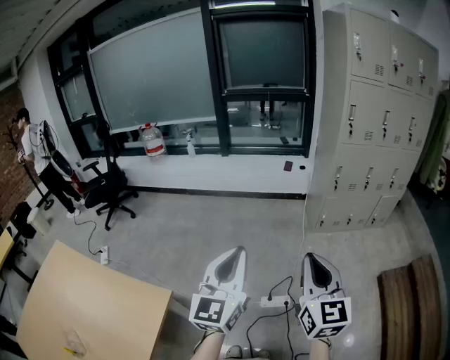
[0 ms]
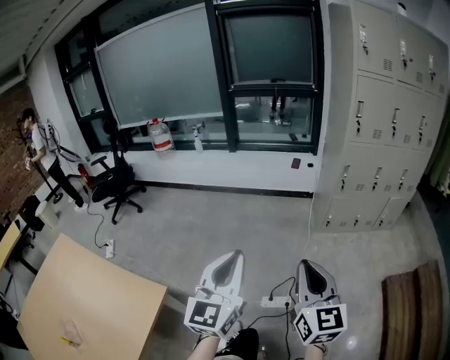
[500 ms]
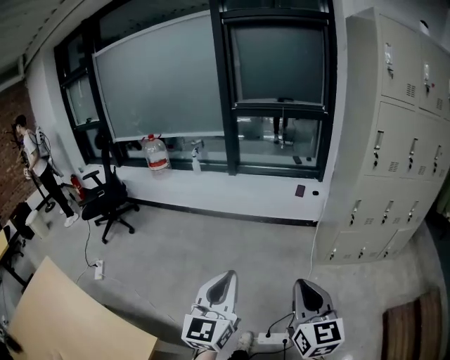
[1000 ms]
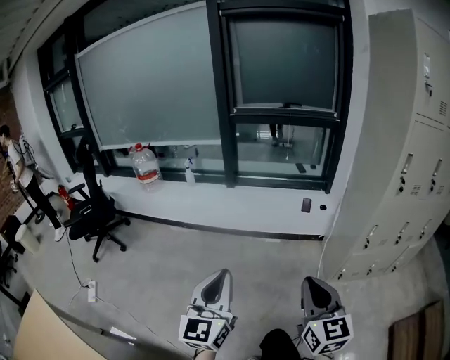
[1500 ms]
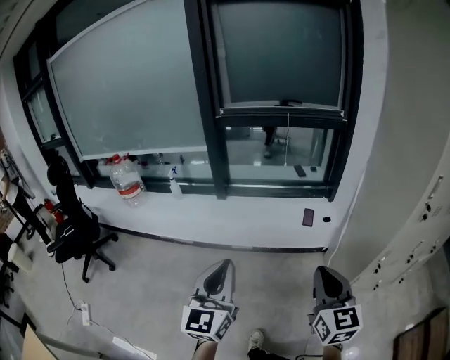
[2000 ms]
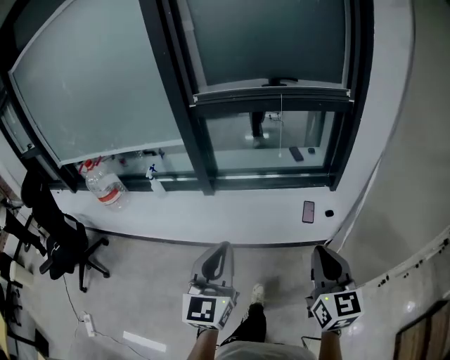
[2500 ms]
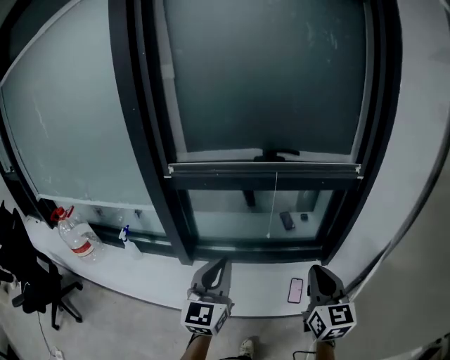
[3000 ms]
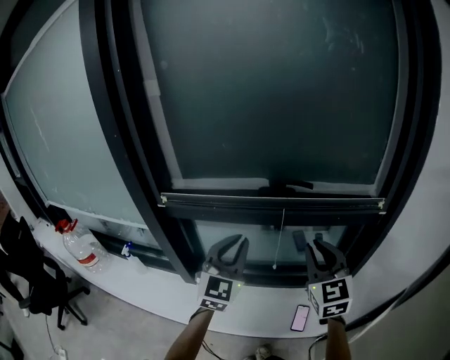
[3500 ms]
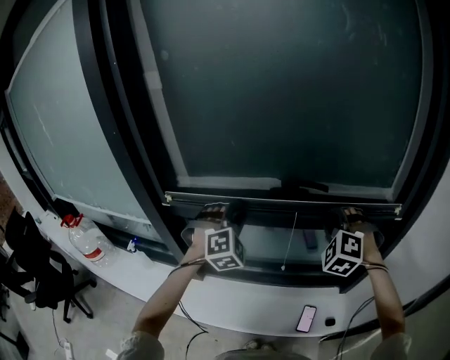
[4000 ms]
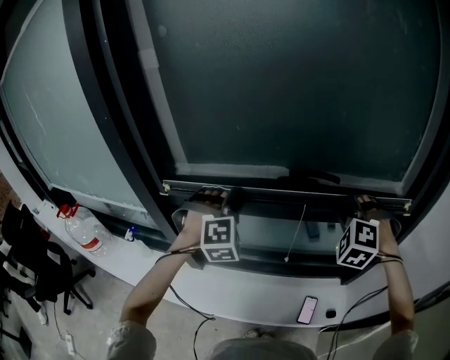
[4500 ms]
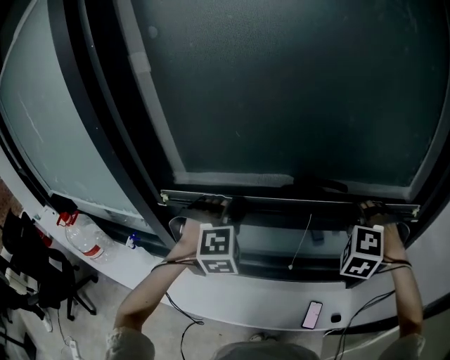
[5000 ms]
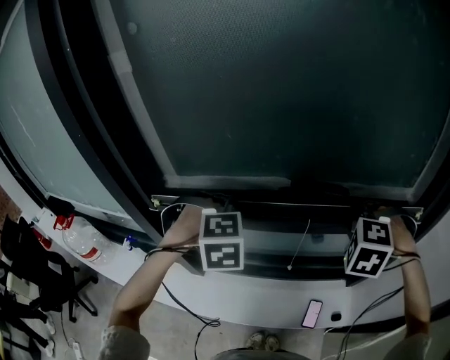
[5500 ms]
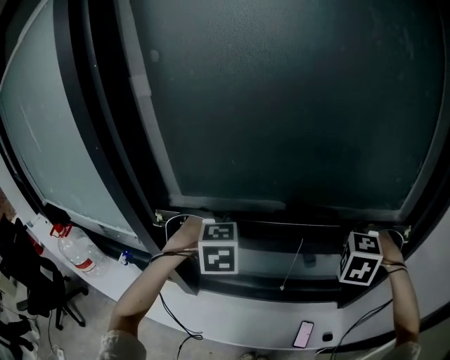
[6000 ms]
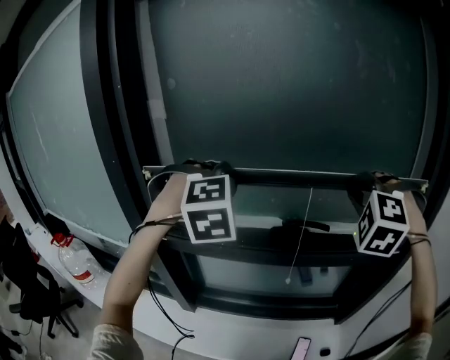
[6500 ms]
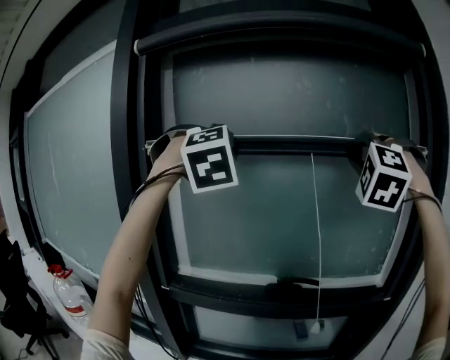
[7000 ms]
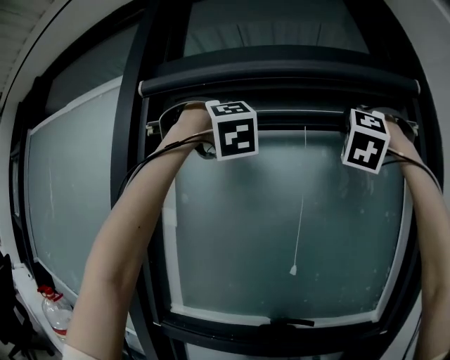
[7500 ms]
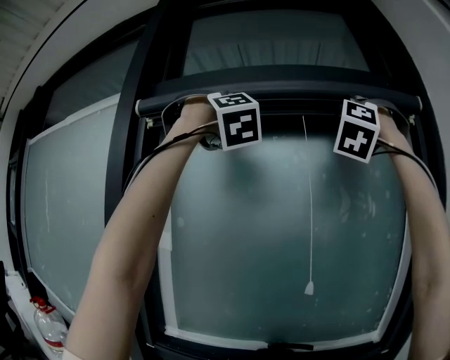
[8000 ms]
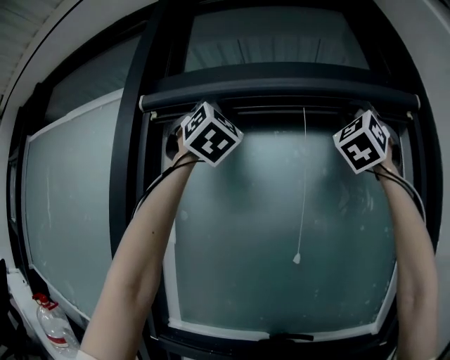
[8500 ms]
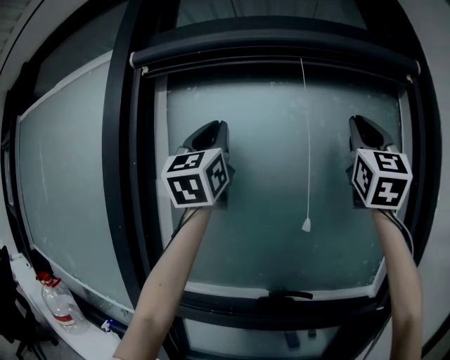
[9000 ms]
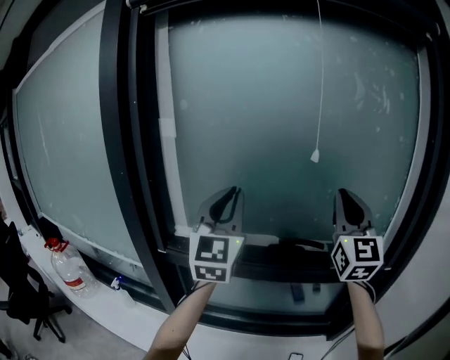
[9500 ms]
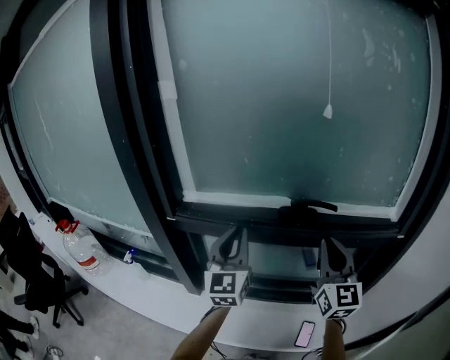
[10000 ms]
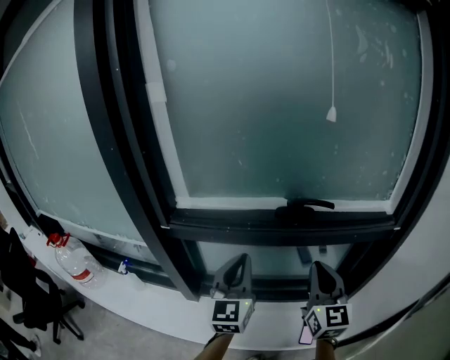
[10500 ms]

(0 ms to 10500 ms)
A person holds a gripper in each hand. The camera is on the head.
0 ms - 2000 ms: The two grippers travel together, forward, approximately 70 cm.
2000 ms - 4000 ms: The two grippers travel together, forward, approximately 90 cm. The right gripper rotates around the line of its fingers by about 70 degrees, counterclockwise from behind. The left gripper twists approximately 70 degrees clockwise, seen from behind.
4000 ms - 6500 ms: Both grippers move upward, some 20 cm.
6500 ms - 8500 ms: The two grippers go some 50 cm upward. The right gripper tips its fingers upward by some 60 degrees, while the left gripper tilts its fingers about 60 degrees upward.
8500 ms - 10500 ms: Both grippers move downward, about 70 cm. The left gripper twists approximately 60 degrees counterclockwise, seen from behind; the right gripper rotates around the line of its fingers by some 60 degrees, clockwise from behind.

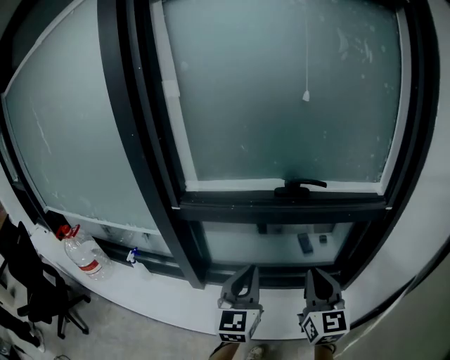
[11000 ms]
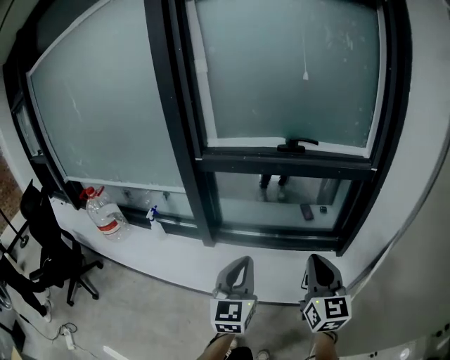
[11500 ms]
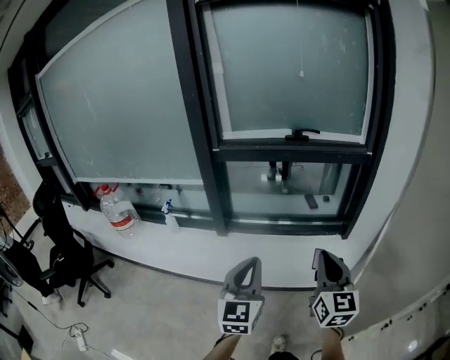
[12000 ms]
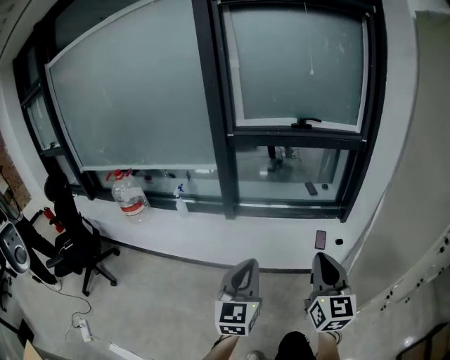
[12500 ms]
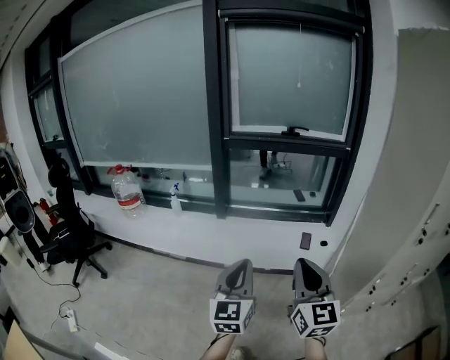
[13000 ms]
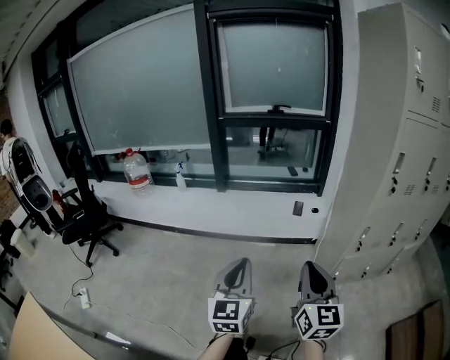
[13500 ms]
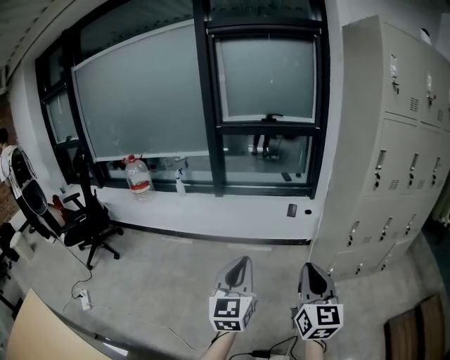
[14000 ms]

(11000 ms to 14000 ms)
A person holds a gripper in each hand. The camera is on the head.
11000 ms - 12500 ms: Both grippers are carried backward, roughly 50 cm.
12500 ms - 14000 ms: The pair of grippers is taken backward, about 40 cm.

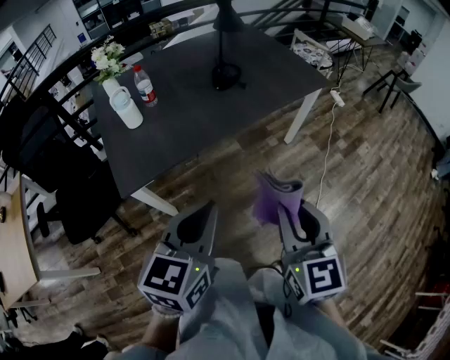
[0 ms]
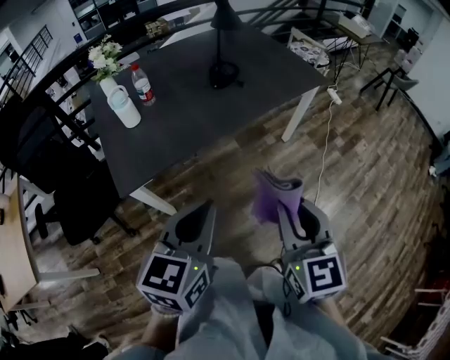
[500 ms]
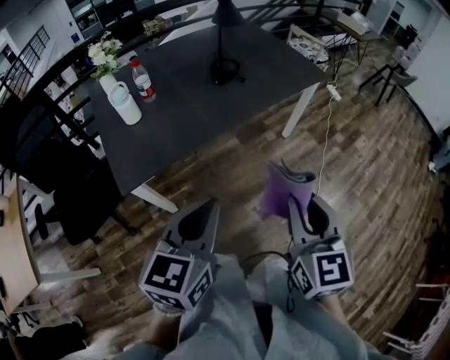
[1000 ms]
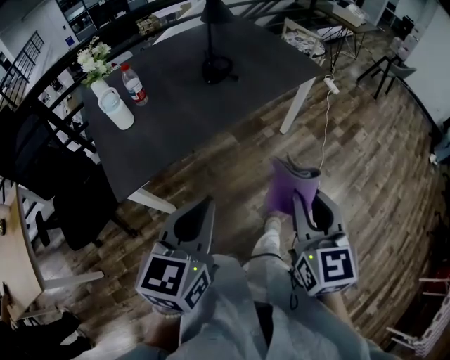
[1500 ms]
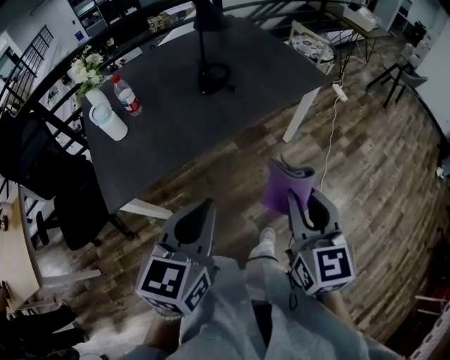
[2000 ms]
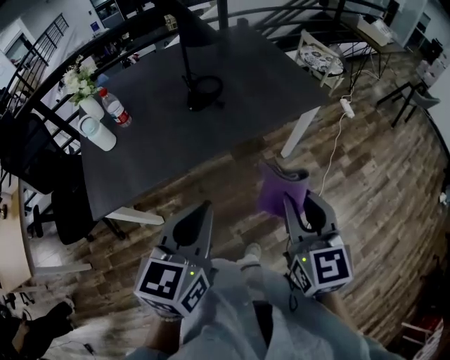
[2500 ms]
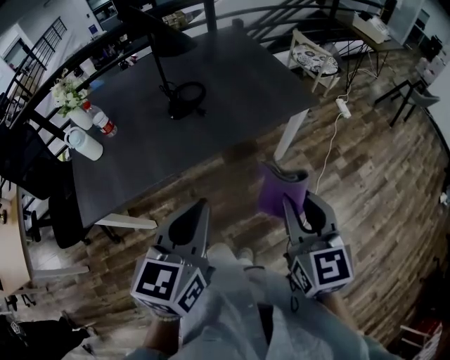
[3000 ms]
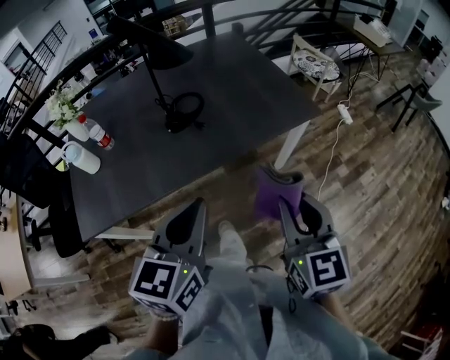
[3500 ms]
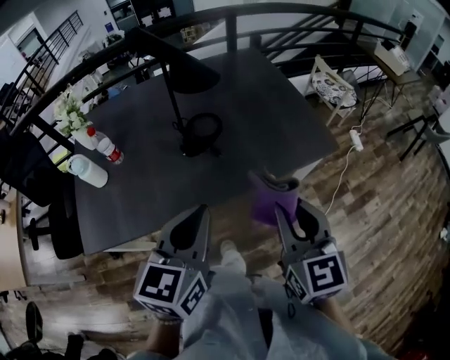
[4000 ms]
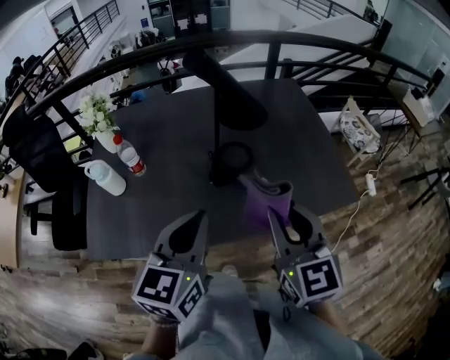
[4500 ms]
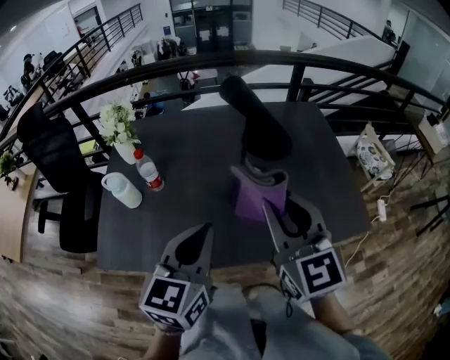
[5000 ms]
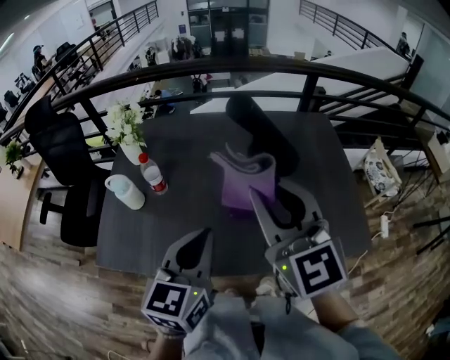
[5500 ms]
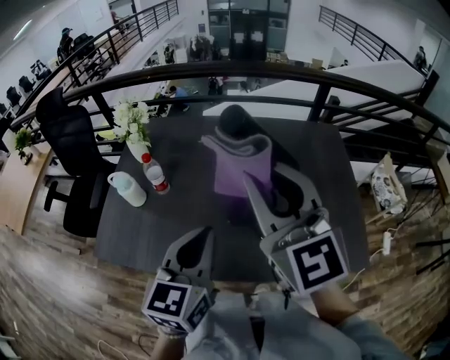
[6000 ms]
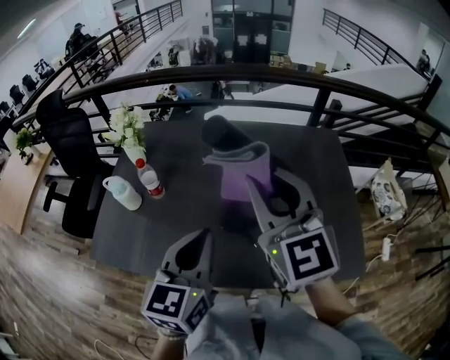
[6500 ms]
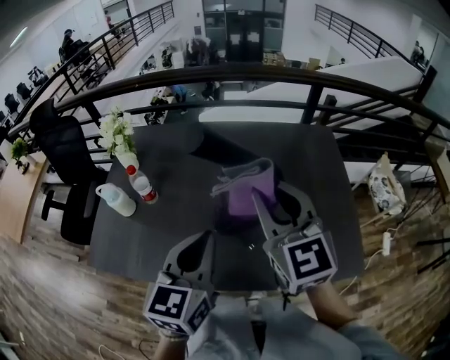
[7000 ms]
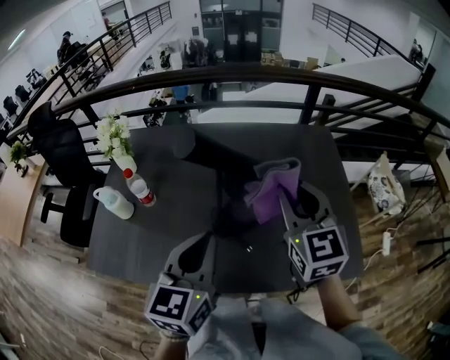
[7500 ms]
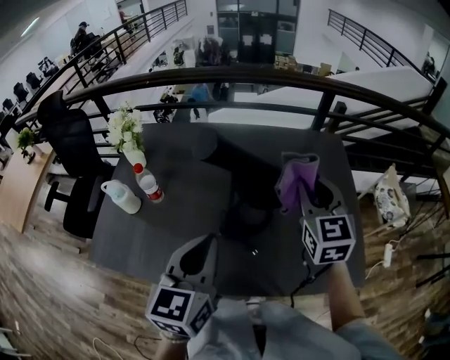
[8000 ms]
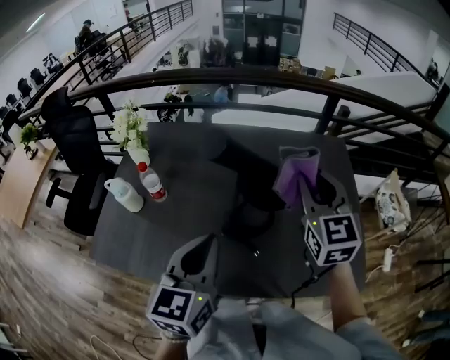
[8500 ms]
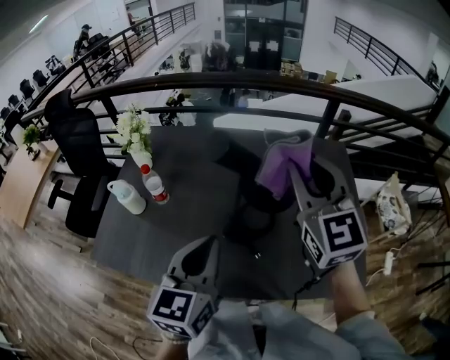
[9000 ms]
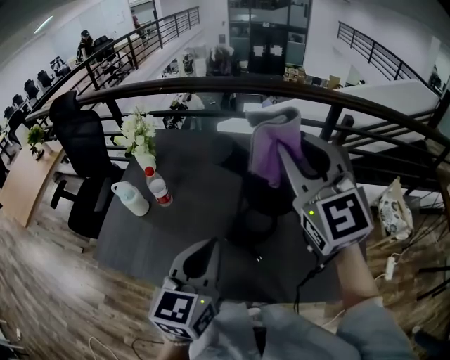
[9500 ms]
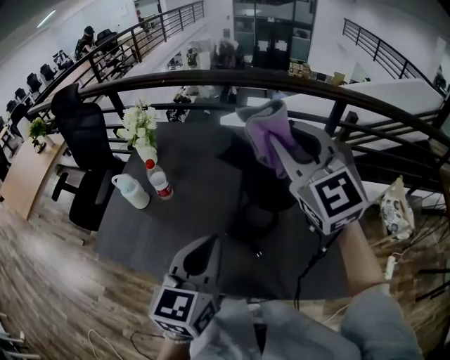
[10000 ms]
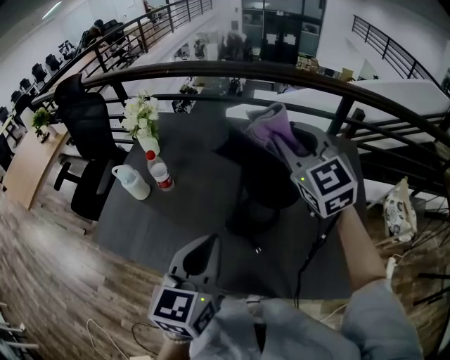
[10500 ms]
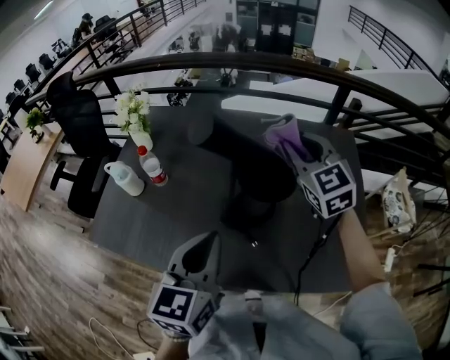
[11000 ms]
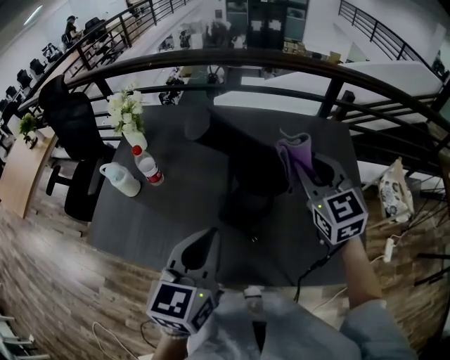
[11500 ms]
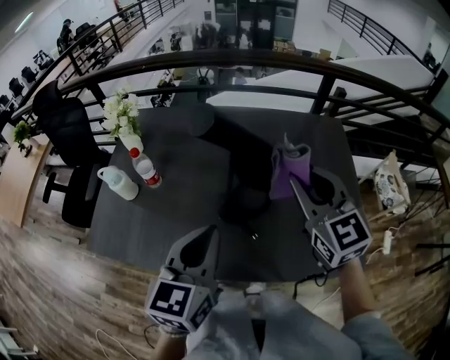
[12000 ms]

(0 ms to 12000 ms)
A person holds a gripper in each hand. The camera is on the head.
0 ms - 2000 ms: Both grippers travel together forward and to the right, some 10 cm.
2000 ms - 4000 ms: The right gripper moves forward, about 30 cm; the left gripper goes about 30 cm forward and to the right.
4000 ms - 6000 ms: The right gripper moves roughly 35 cm, and changes its angle by about 40 degrees, while the left gripper ends up roughly 20 cm from where it was, and changes its angle by about 30 degrees.
6000 ms - 8000 ms: The left gripper moves about 5 cm, while the right gripper shifts some 25 cm to the right, downward and forward, and changes its angle by roughly 30 degrees.
8000 ms - 10000 ms: The right gripper heads upward and to the left, covering some 20 cm, and turns by roughly 30 degrees.
10000 ms - 12000 ms: The right gripper goes roughly 15 cm downward, backward and to the right, and changes its angle by roughly 20 degrees.

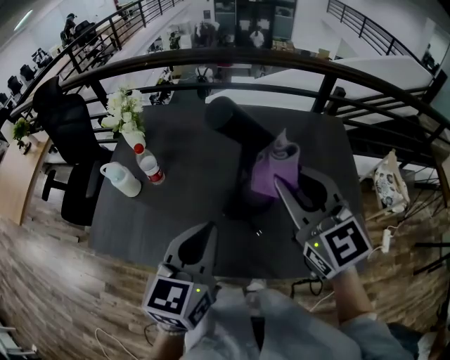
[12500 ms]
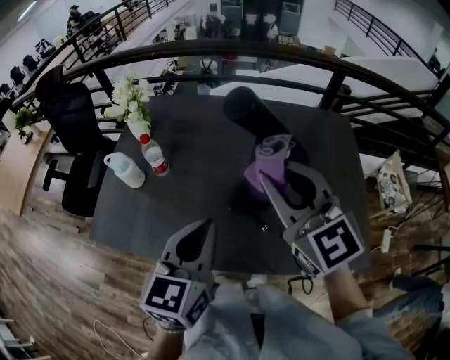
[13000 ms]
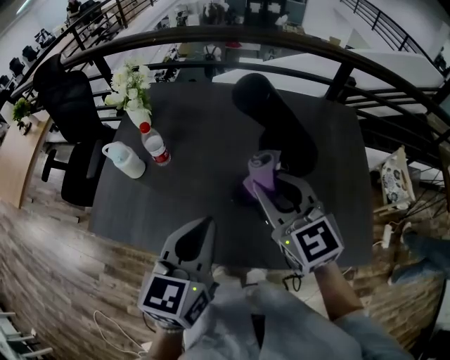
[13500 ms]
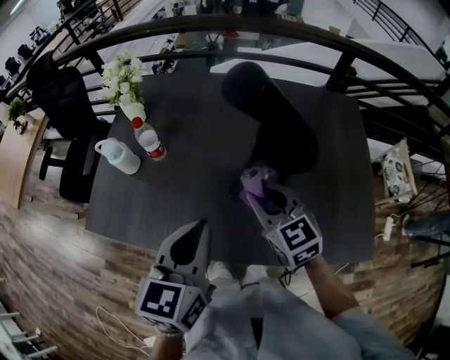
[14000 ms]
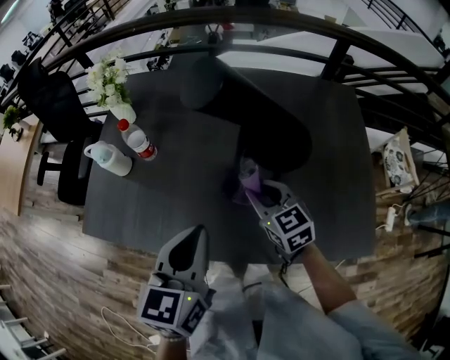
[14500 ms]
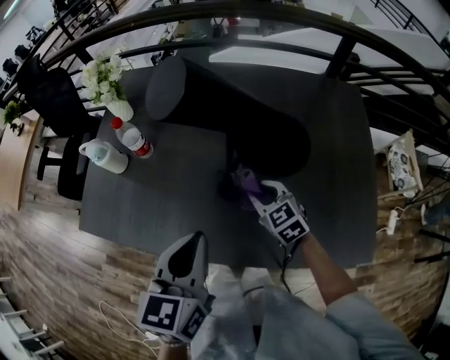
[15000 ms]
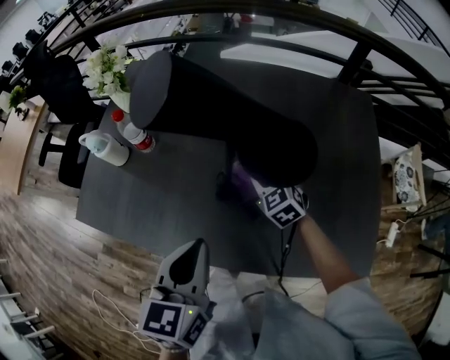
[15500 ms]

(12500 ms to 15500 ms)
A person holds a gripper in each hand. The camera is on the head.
12500 ms - 14000 ms: The right gripper travels downward by roughly 20 cm, and swivels some 20 degrees. Meanwhile the left gripper ends up roughly 5 cm from where it was.
14000 ms - 15500 ms: The right gripper goes about 20 cm downward and forward, and rotates roughly 20 degrees. The left gripper changes place by roughly 5 cm.
